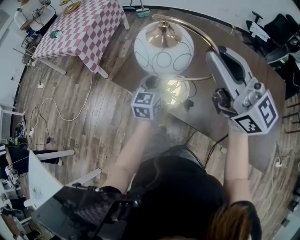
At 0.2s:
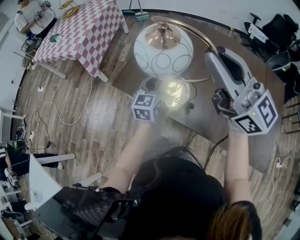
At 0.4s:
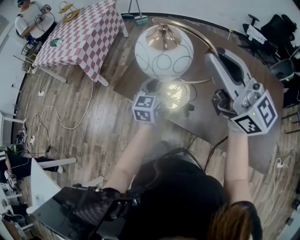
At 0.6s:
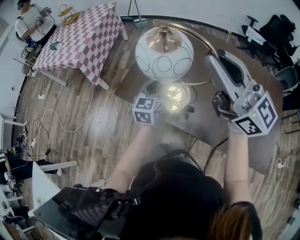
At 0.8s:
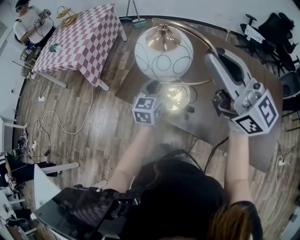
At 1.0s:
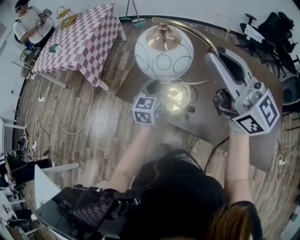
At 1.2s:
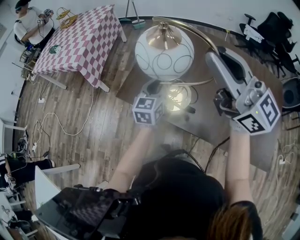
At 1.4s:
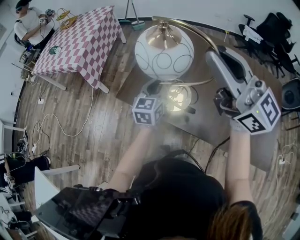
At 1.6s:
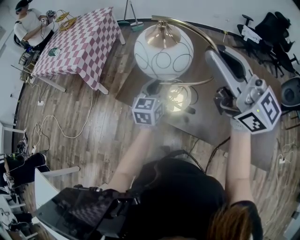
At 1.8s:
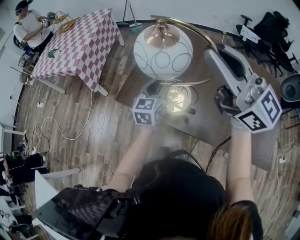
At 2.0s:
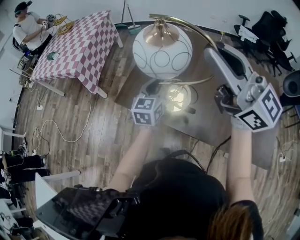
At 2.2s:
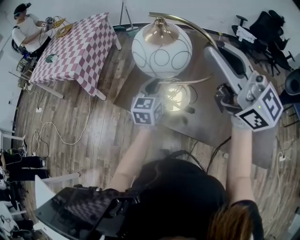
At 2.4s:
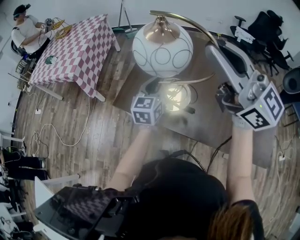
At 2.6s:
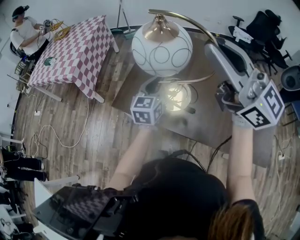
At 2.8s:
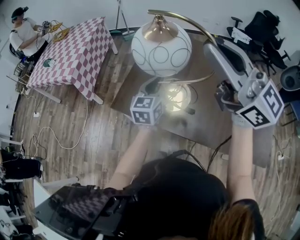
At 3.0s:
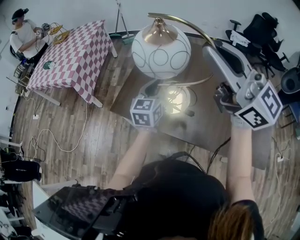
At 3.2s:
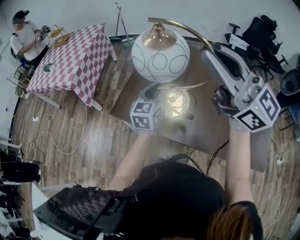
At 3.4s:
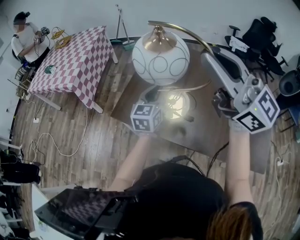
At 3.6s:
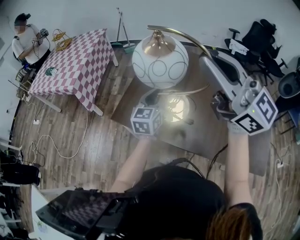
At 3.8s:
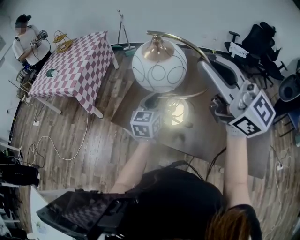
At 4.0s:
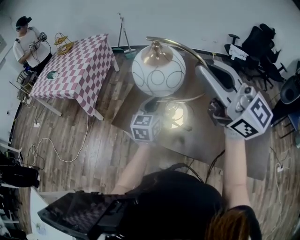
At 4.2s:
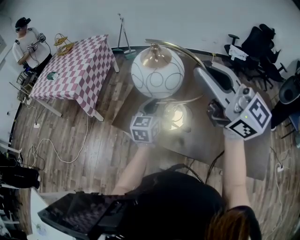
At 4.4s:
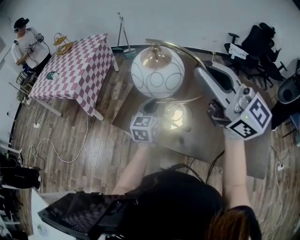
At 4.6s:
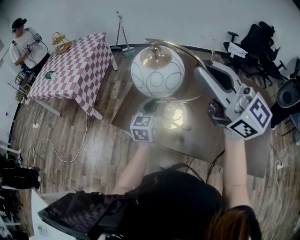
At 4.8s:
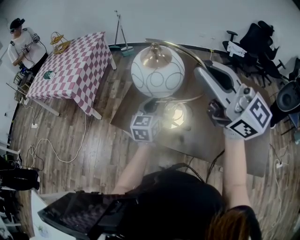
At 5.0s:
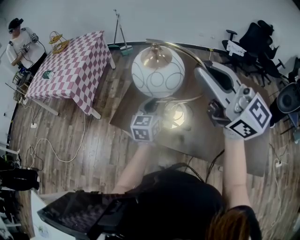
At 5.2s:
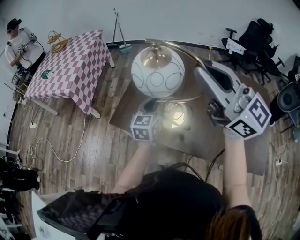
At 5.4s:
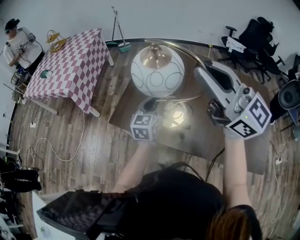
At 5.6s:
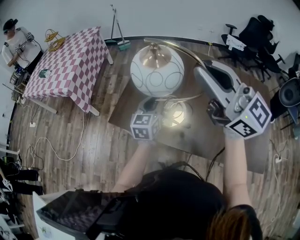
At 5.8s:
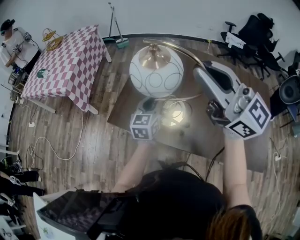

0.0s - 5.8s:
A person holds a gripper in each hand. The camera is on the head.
0.0s - 1.4s: The right gripper moves approximately 5 cm.
1.4s - 2.8s: The grippers move only a little.
2.8s - 4.4s: Both grippers stay put.
4.4s - 5.8s: The grippers stay close to where they were, moving slightly.

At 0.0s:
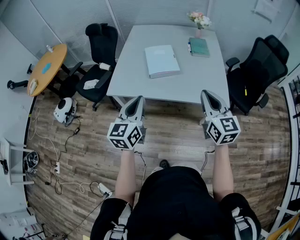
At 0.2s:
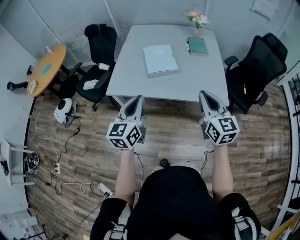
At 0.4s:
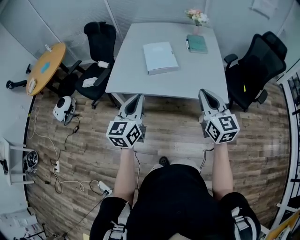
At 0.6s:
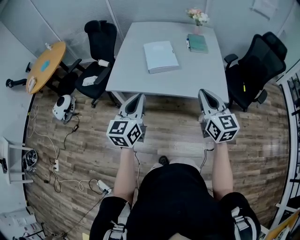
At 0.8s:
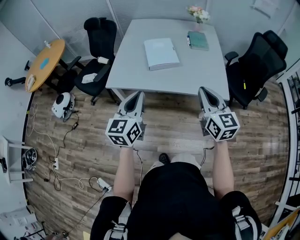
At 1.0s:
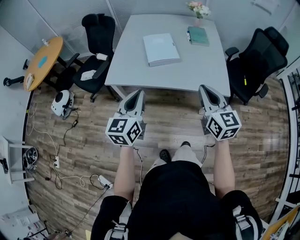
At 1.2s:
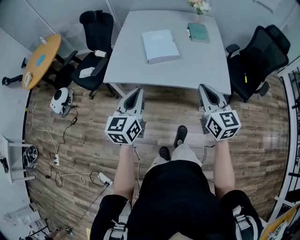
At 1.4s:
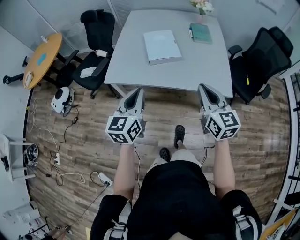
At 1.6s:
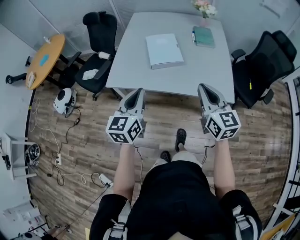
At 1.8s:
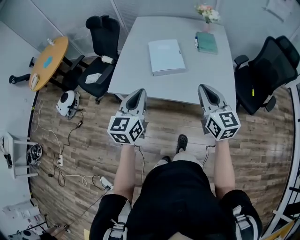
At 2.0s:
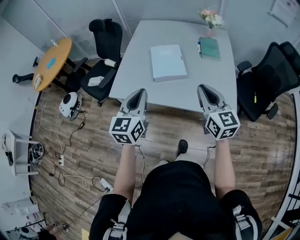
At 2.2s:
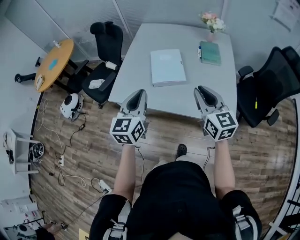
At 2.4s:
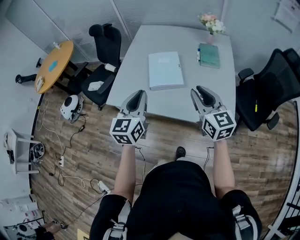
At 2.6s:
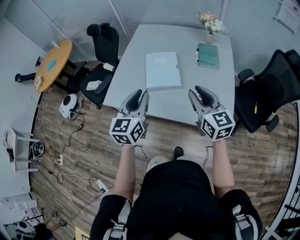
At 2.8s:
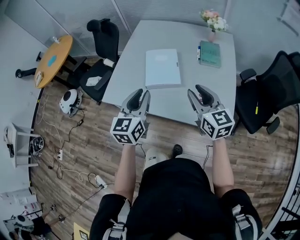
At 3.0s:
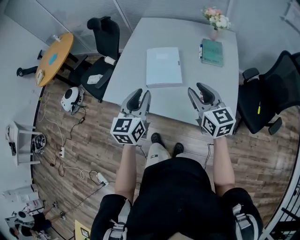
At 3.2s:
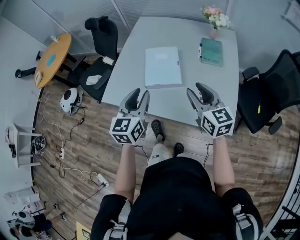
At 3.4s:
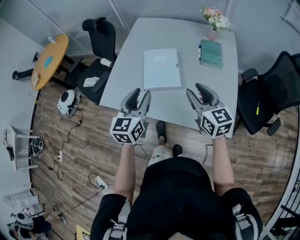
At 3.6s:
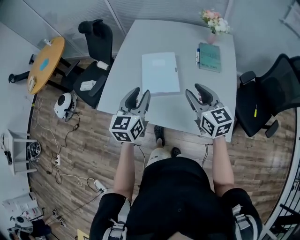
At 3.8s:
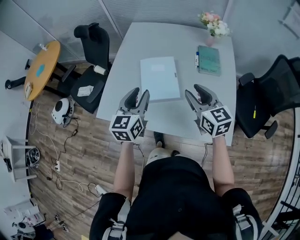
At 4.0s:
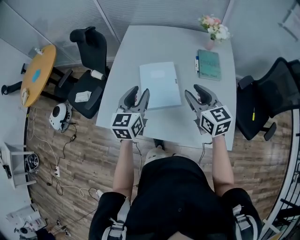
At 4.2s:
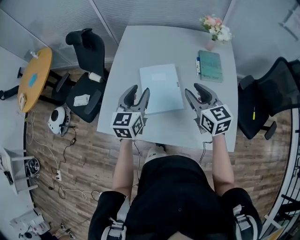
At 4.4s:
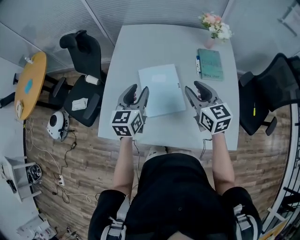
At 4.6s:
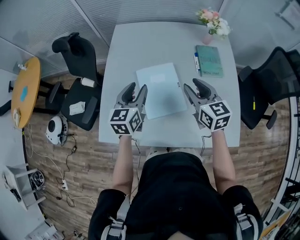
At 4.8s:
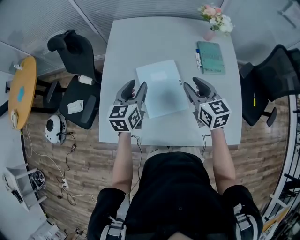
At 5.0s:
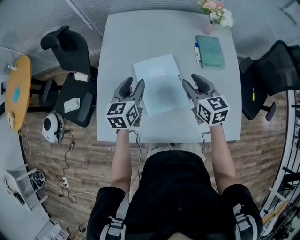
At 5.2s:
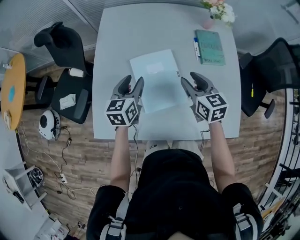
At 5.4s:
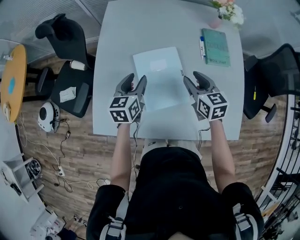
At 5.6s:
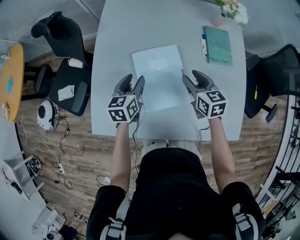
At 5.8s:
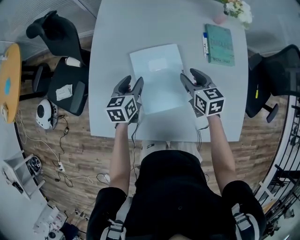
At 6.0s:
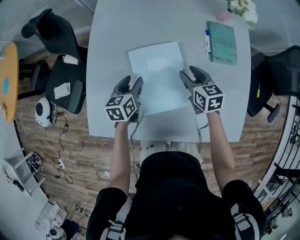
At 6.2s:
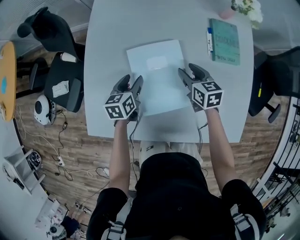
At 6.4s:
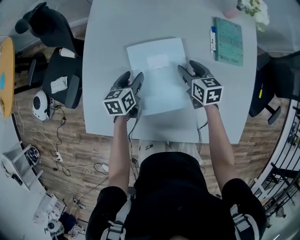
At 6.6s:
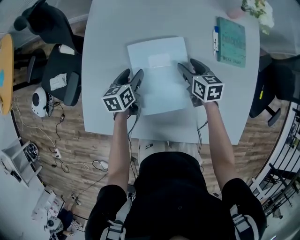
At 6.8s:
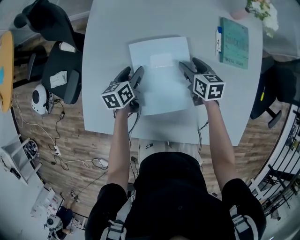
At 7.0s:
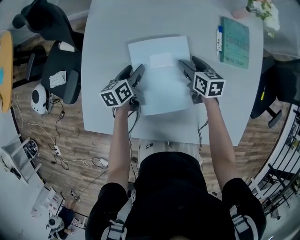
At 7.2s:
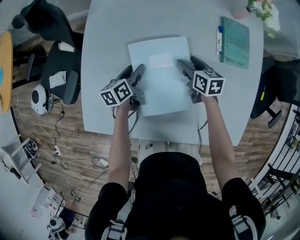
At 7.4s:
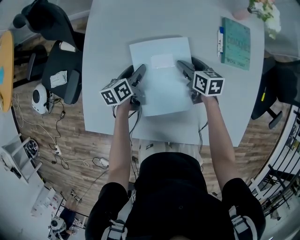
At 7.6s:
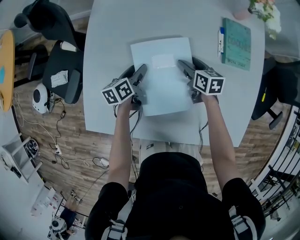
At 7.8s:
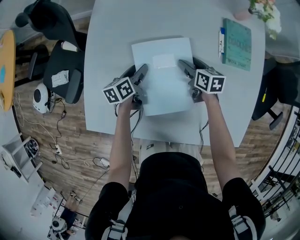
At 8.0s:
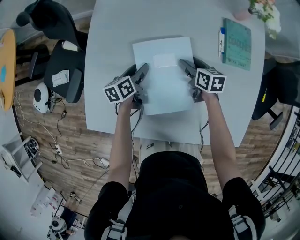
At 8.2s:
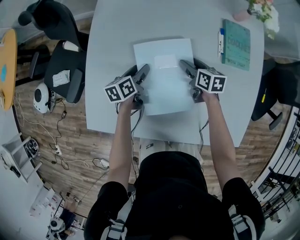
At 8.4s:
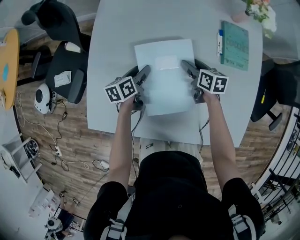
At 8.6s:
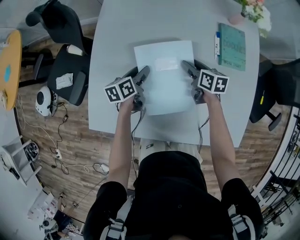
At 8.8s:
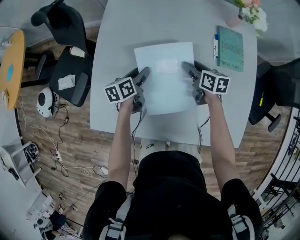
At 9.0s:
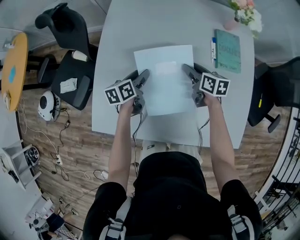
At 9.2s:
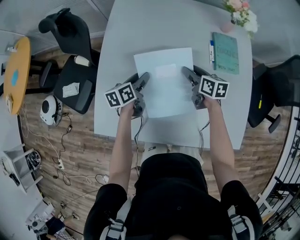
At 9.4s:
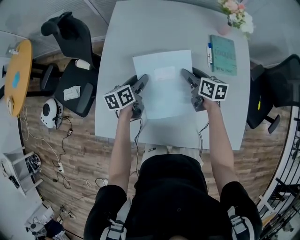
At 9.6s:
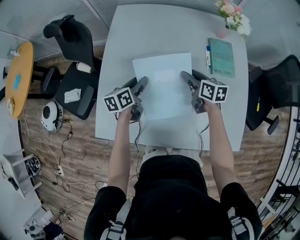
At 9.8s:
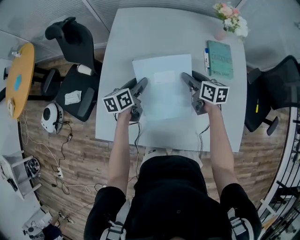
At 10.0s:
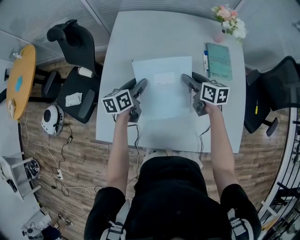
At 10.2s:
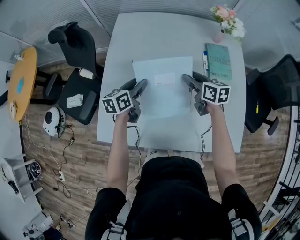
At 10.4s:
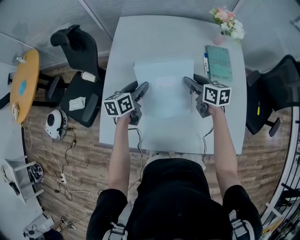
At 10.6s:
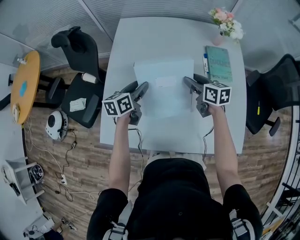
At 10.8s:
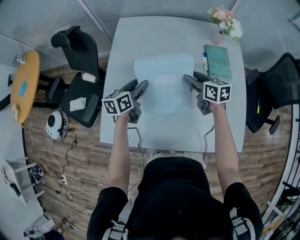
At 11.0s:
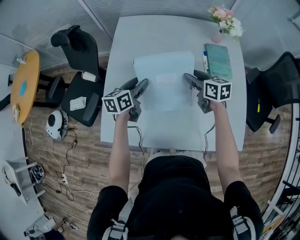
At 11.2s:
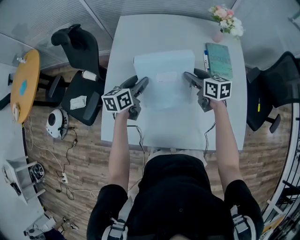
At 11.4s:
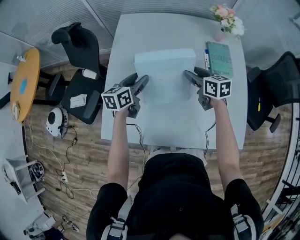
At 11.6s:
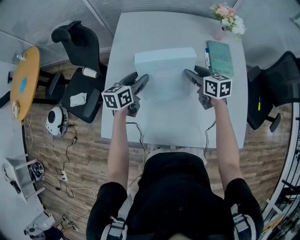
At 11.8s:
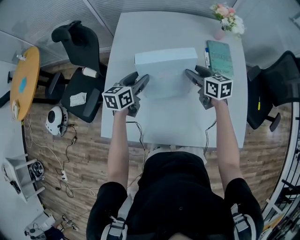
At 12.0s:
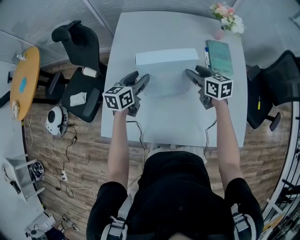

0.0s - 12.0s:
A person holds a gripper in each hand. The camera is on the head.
0.0s - 1.6s: The right gripper shifts by roughly 5 cm.
1.6s - 3.0s: Both grippers travel together forward and to the right, about 25 cm. The right gripper opens; the left gripper opens.
3.0s - 4.4s: The two grippers go some 30 cm forward.
4.4s - 6.0s: Both grippers move downward and forward, roughly 25 cm. The left gripper rotates some 30 degrees, while the right gripper changes its angle by about 20 degrees.
6.0s - 7.6s: The right gripper shifts some 15 cm downward and forward, and opens. Meanwhile the left gripper heads downward, covering some 10 cm, and swivels approximately 20 degrees.
7.6s - 9.0s: Both grippers travel together upward, some 10 cm.
9.0s - 10.4s: The two grippers go roughly 10 cm upward.
10.4s - 12.0s: The grippers move only a little.

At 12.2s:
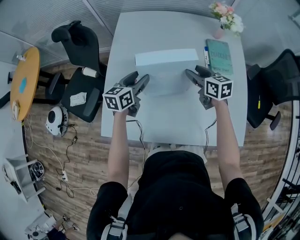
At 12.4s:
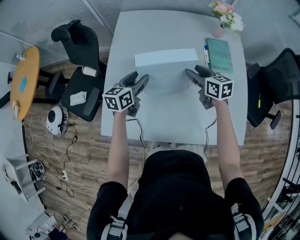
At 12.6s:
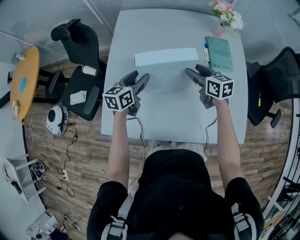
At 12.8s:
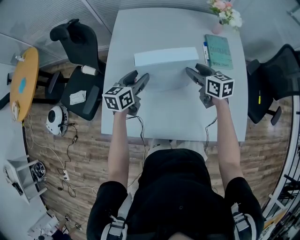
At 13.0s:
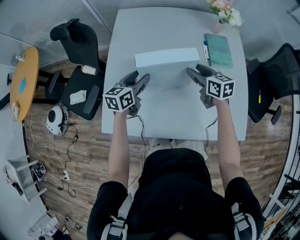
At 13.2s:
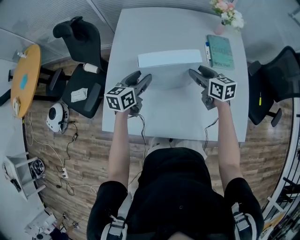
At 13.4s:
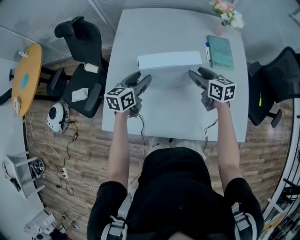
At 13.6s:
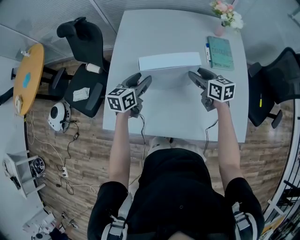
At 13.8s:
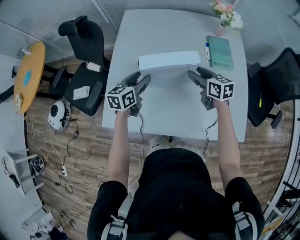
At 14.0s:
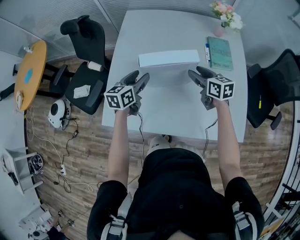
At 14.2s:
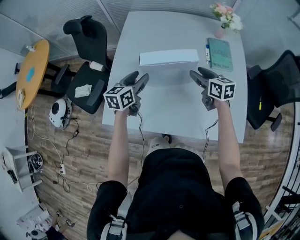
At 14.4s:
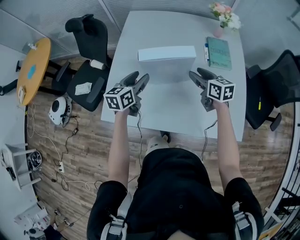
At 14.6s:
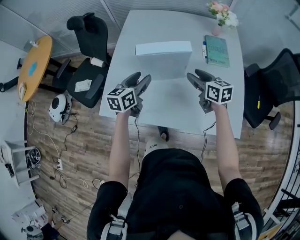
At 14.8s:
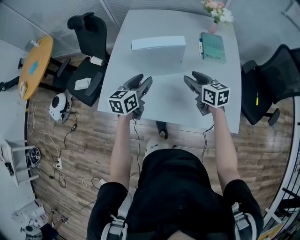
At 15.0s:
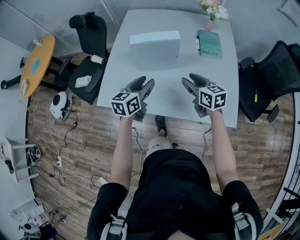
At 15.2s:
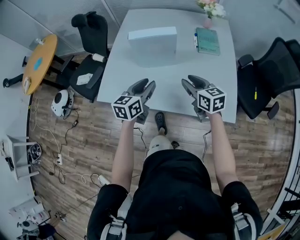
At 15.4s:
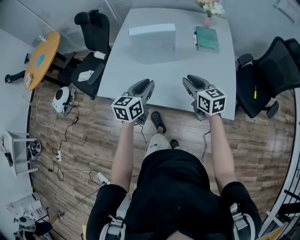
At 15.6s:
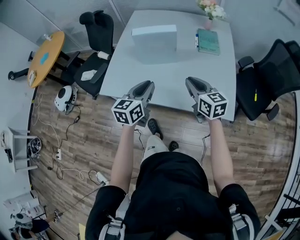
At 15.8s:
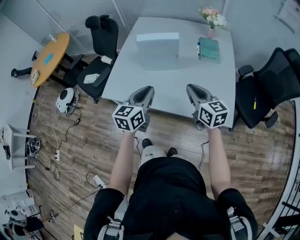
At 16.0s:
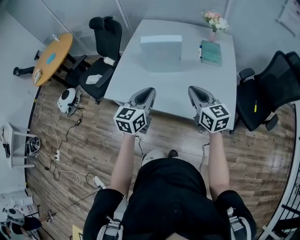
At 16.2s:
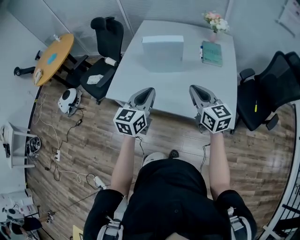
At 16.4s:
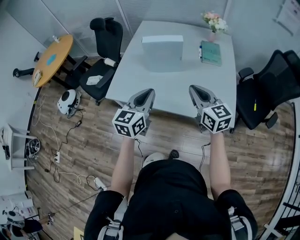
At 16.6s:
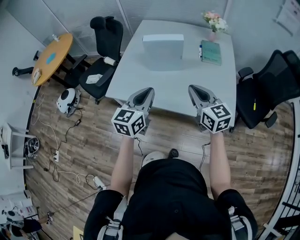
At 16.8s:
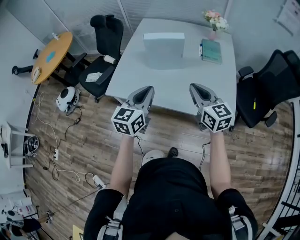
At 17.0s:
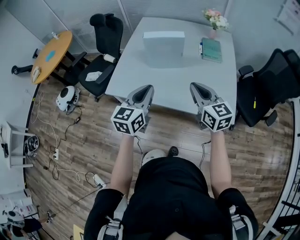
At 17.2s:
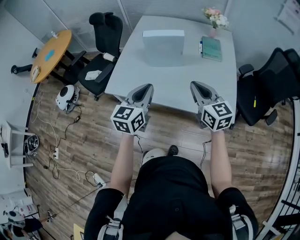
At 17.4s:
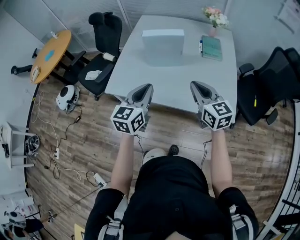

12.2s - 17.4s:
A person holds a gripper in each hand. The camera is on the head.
12.2s - 14.0s: The two grippers go approximately 5 cm backward.
14.0s - 15.6s: The two grippers go some 30 cm backward. The left gripper closes up. The right gripper closes.
15.6s - 17.4s: The left gripper is displaced backward and upward by roughly 10 cm. Meanwhile the right gripper moves upward and backward, about 10 cm.

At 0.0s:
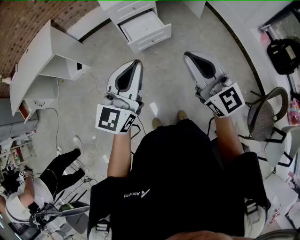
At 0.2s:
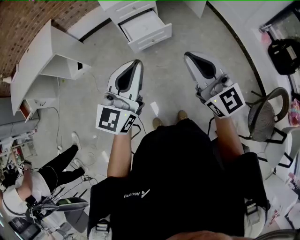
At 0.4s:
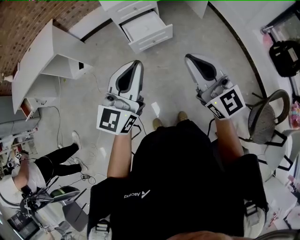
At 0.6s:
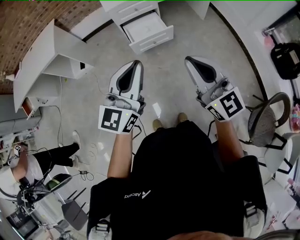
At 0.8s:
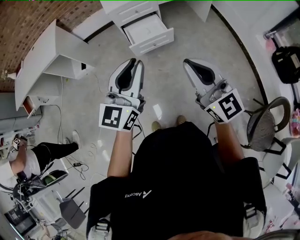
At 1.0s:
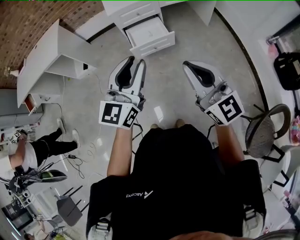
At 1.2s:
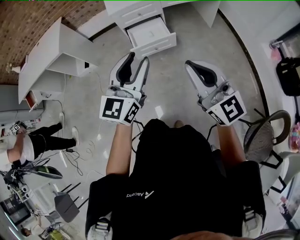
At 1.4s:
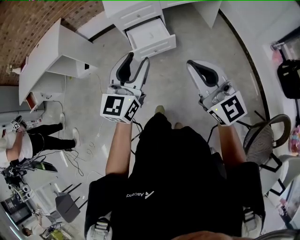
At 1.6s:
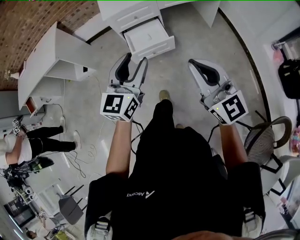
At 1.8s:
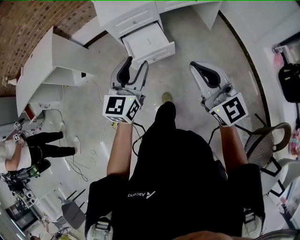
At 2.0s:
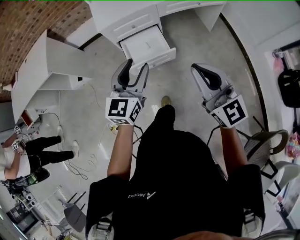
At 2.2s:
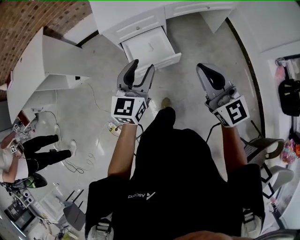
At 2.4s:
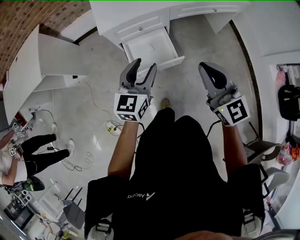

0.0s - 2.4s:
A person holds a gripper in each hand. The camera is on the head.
0.0s - 1.2s: The right gripper travels to the right by some 10 cm. The left gripper heads to the right and forward, covering approximately 10 cm, and opens.
1.2s - 2.4s: The left gripper heads forward and downward, covering some 40 cm; the right gripper heads forward, covering approximately 40 cm.
